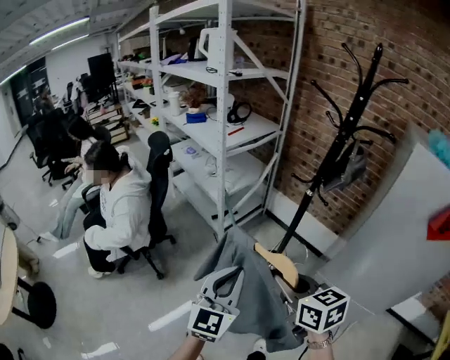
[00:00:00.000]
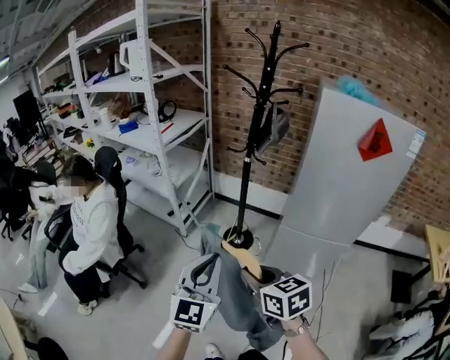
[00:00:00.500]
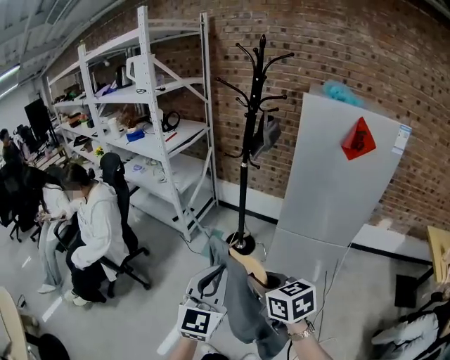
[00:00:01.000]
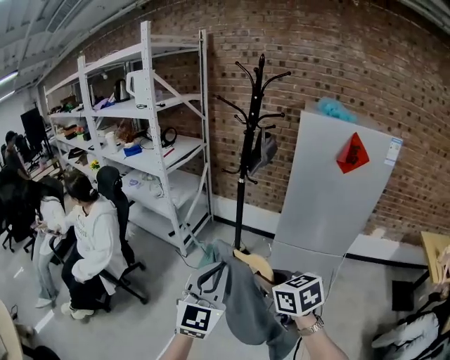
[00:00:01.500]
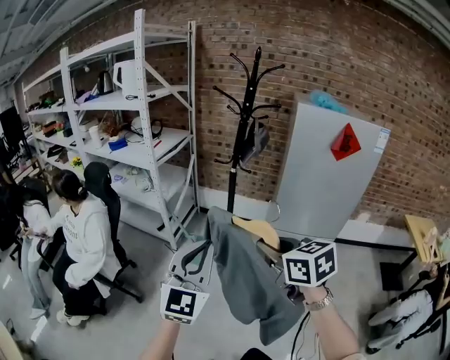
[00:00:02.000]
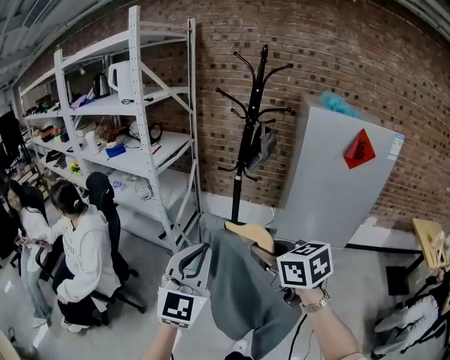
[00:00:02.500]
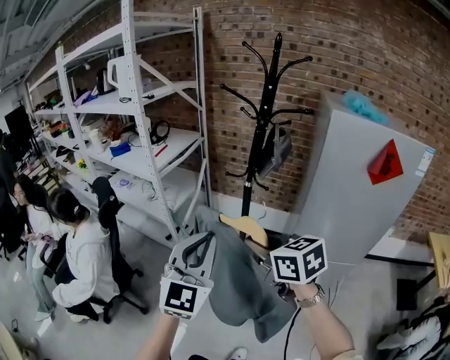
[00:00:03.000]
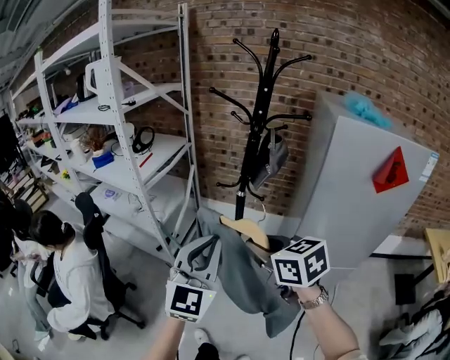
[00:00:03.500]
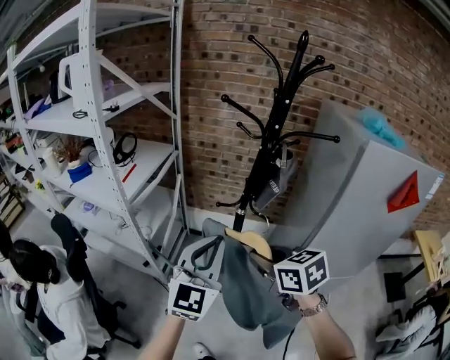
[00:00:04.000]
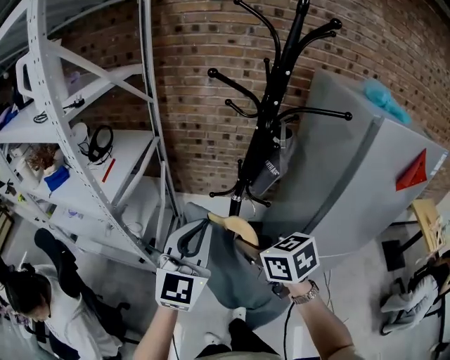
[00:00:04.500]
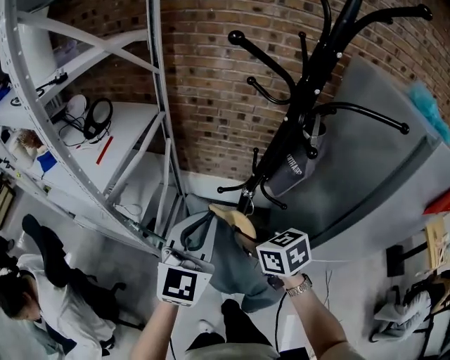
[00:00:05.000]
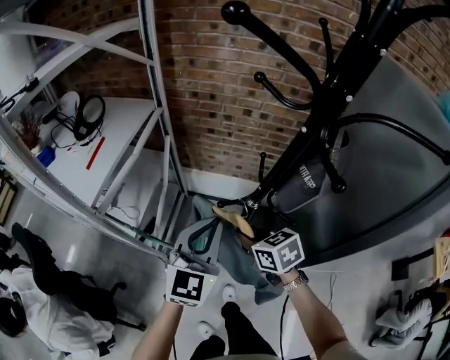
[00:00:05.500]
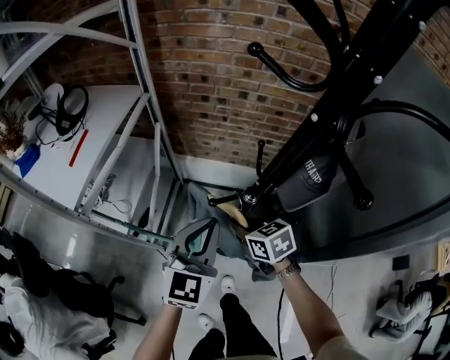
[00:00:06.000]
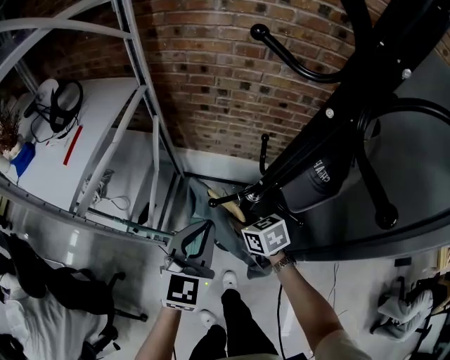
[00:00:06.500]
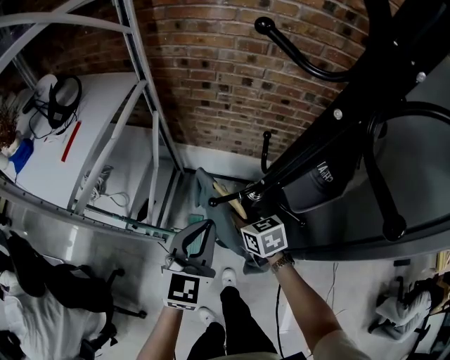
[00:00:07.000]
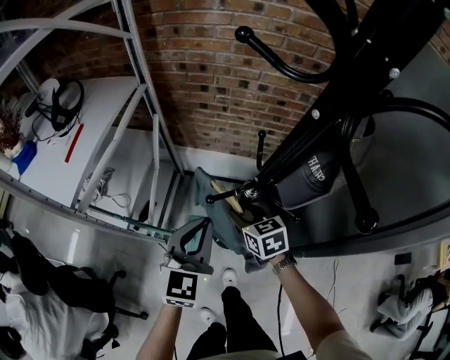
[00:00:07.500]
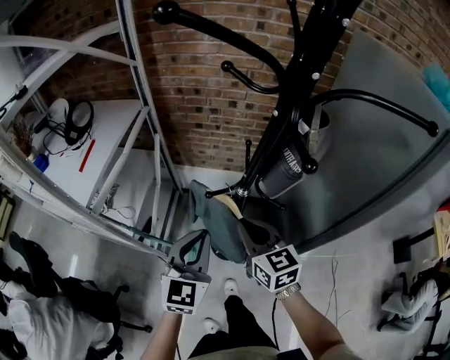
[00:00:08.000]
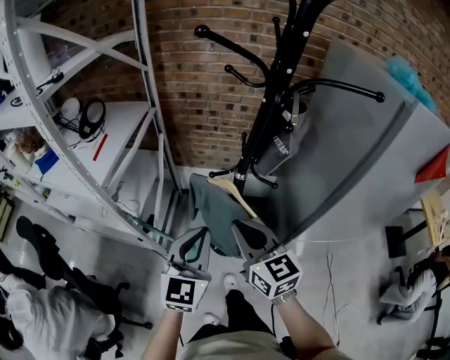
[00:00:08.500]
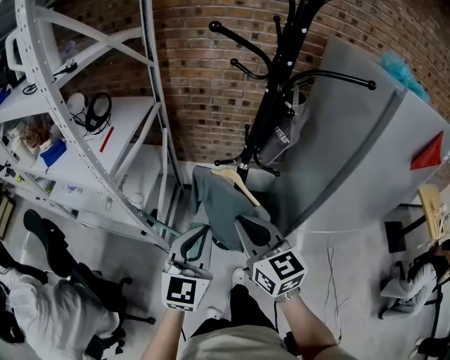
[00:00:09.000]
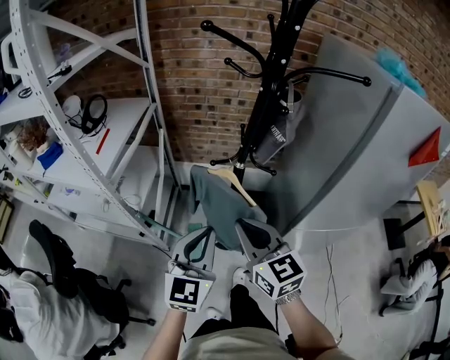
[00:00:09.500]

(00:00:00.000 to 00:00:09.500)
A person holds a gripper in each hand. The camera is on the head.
00:00:00.000 - 00:00:02.000: The left gripper heads backward, upward and to the left, covering approximately 20 cm, and turns by roughly 20 degrees, while the right gripper is displaced backward and upward by roughly 20 cm, and turns by roughly 20 degrees.
00:00:02.000 - 00:00:04.000: Both grippers are carried forward, approximately 40 cm.
00:00:04.000 - 00:00:05.500: The two grippers go some 30 cm forward and downward.
00:00:05.500 - 00:00:07.500: The left gripper heads downward, covering approximately 10 cm; the right gripper is displaced downward and forward by approximately 10 cm, and opens.
00:00:07.500 - 00:00:09.500: The left gripper heads backward and upward, covering roughly 25 cm. The right gripper goes approximately 35 cm backward and upward, rotates roughly 30 degrees, and closes its fingers.

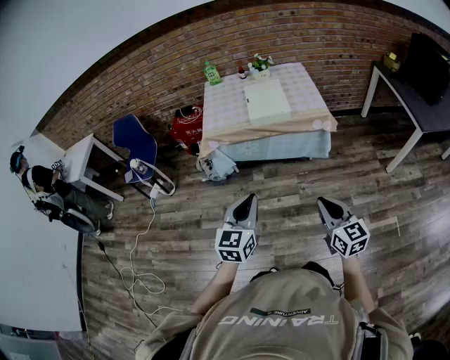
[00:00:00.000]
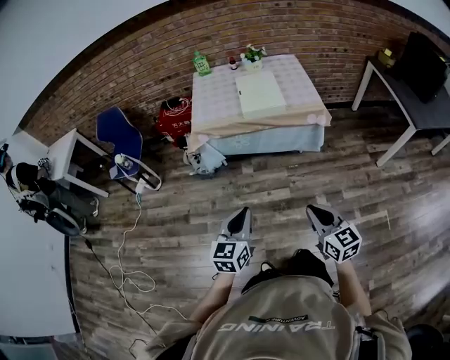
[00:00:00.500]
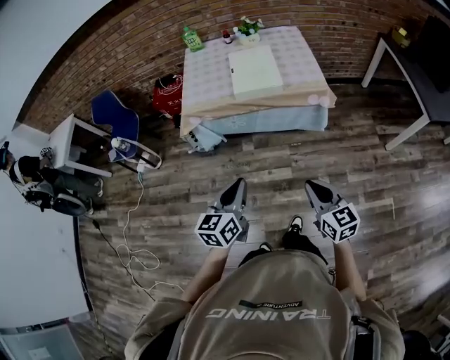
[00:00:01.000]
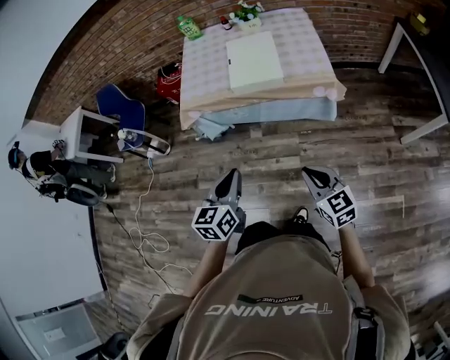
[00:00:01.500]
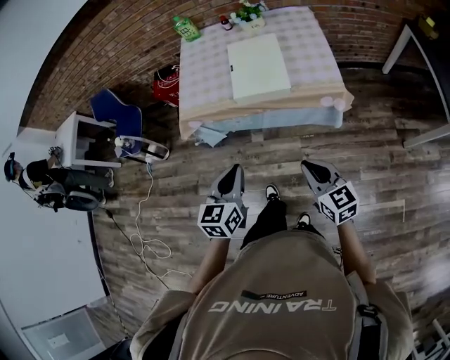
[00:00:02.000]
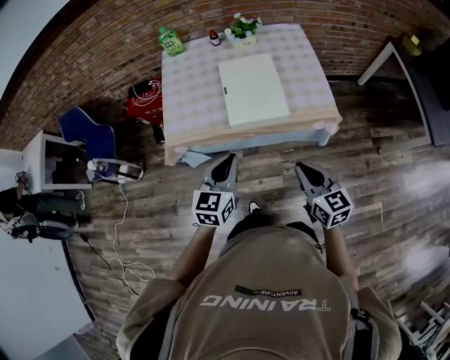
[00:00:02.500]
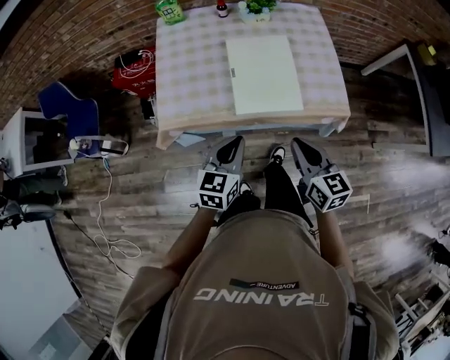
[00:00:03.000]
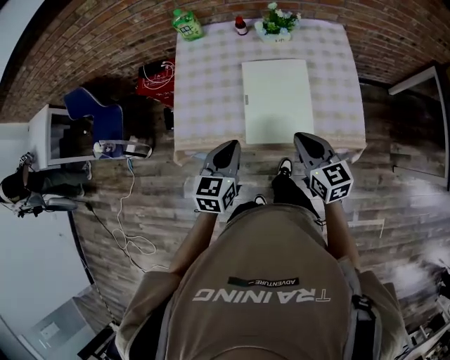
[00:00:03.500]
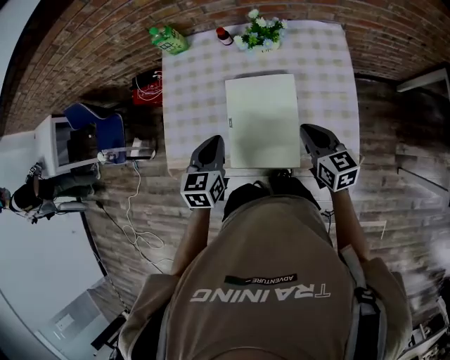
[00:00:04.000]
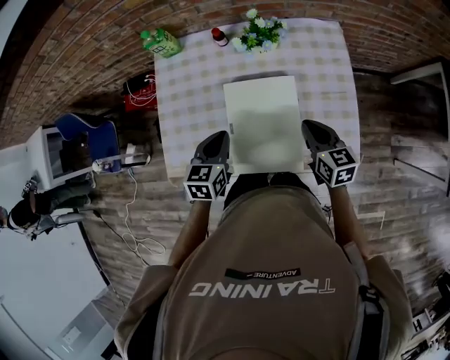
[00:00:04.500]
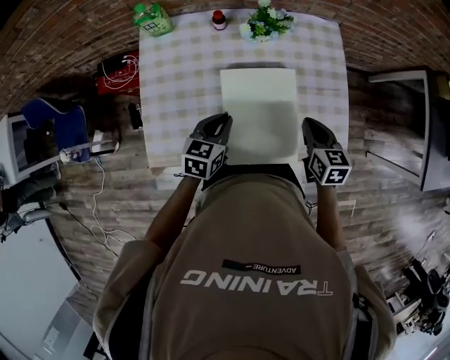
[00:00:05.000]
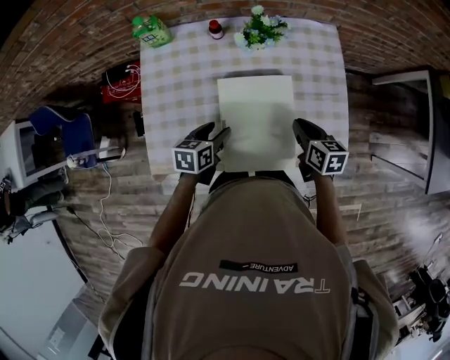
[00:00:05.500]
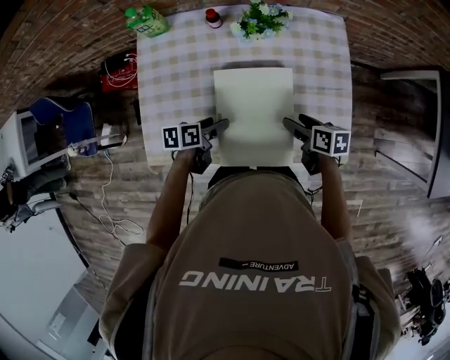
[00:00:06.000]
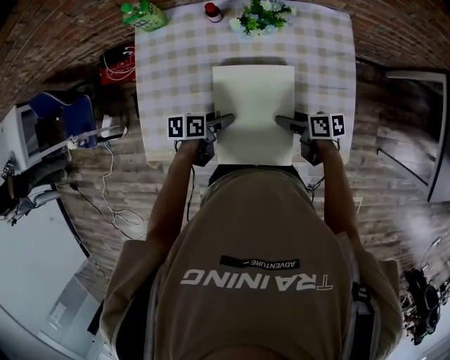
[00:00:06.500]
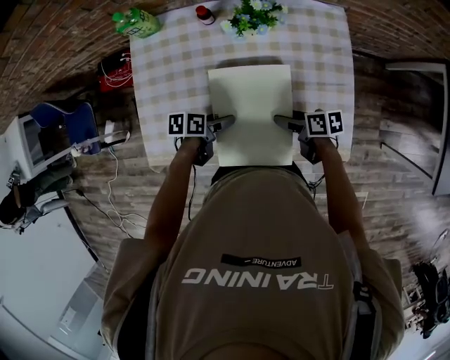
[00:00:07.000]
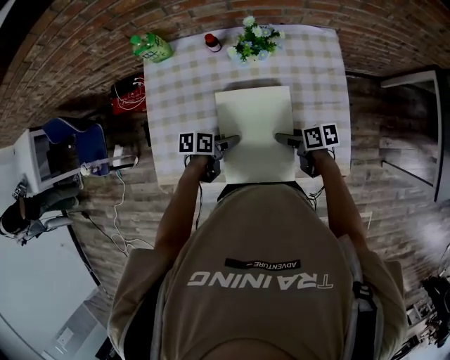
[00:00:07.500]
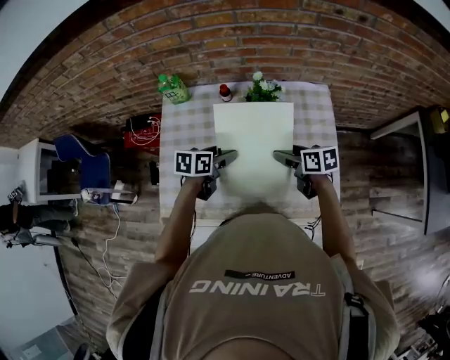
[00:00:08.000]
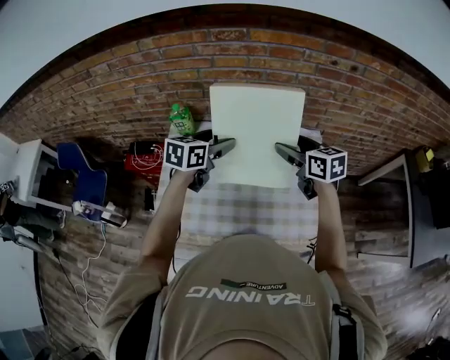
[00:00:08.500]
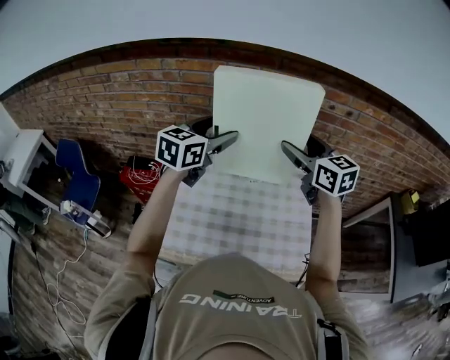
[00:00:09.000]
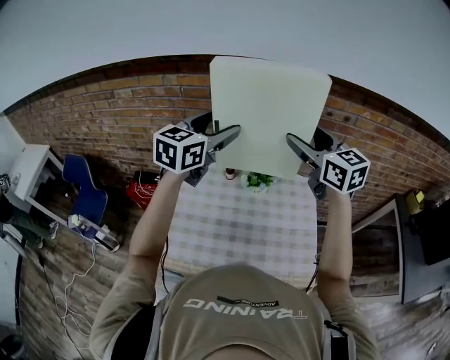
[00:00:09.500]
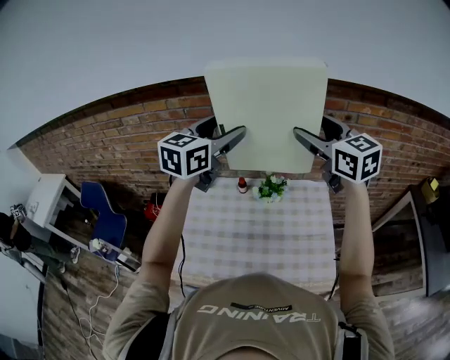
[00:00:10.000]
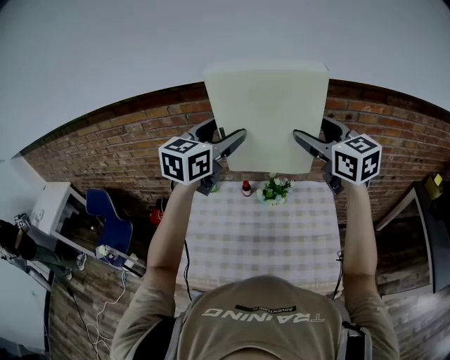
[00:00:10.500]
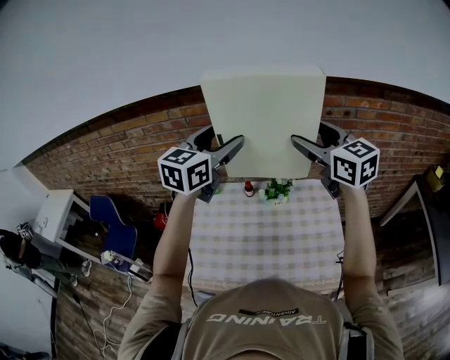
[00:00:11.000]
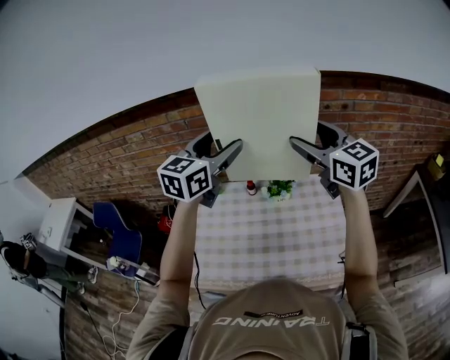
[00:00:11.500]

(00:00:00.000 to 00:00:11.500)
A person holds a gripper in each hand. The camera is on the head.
00:00:00.000 - 00:00:02.000: The two grippers go approximately 25 cm forward.
00:00:02.000 - 00:00:04.000: The pair of grippers is taken forward, roughly 40 cm.
00:00:04.000 - 00:00:06.000: The two grippers go about 15 cm downward. The right gripper turns by roughly 40 degrees, and opens its fingers; the left gripper swivels some 50 degrees, and opens.
00:00:06.000 - 00:00:07.500: The grippers move only a little.
00:00:07.500 - 00:00:09.500: The two grippers go about 50 cm upward. The right gripper tips its fingers upward by approximately 40 degrees. The left gripper tips its fingers upward by approximately 40 degrees.
00:00:09.500 - 00:00:11.500: There are only small adjustments of the grippers.

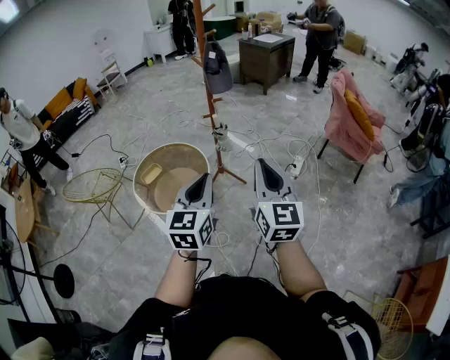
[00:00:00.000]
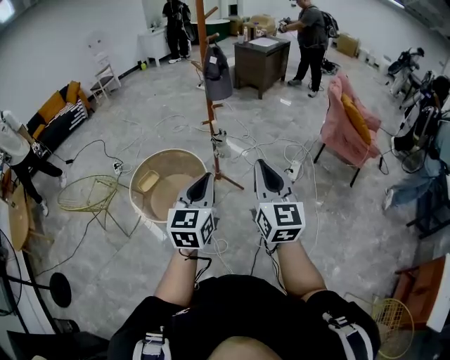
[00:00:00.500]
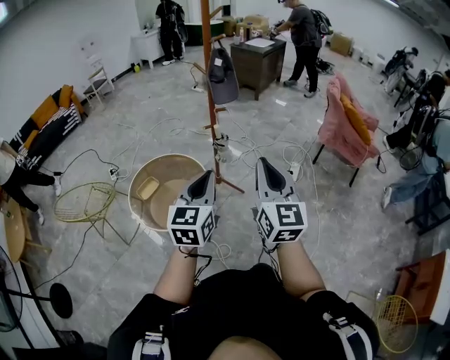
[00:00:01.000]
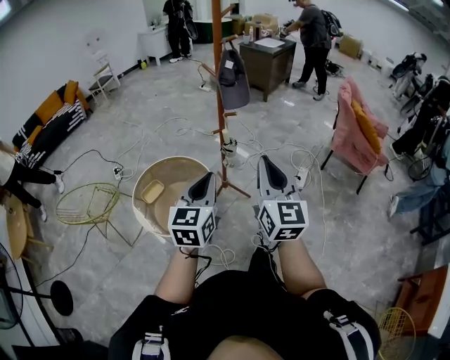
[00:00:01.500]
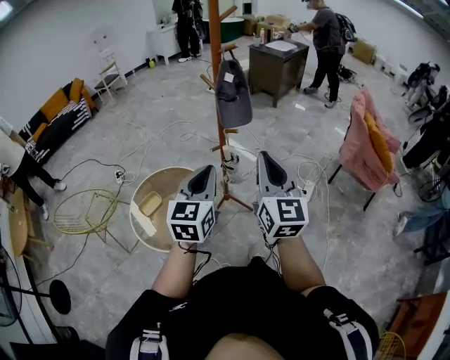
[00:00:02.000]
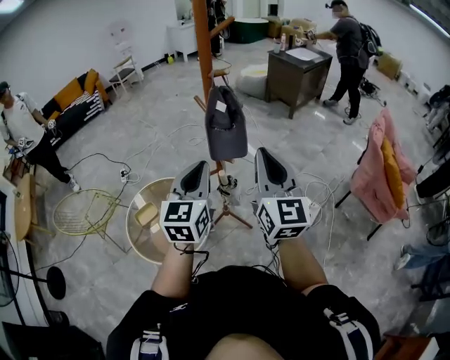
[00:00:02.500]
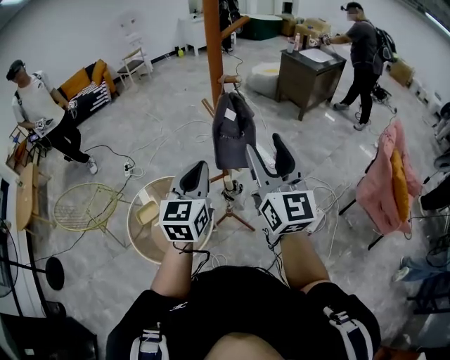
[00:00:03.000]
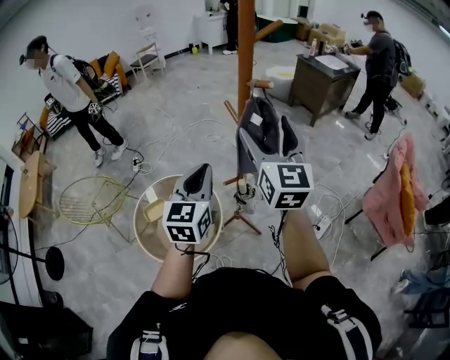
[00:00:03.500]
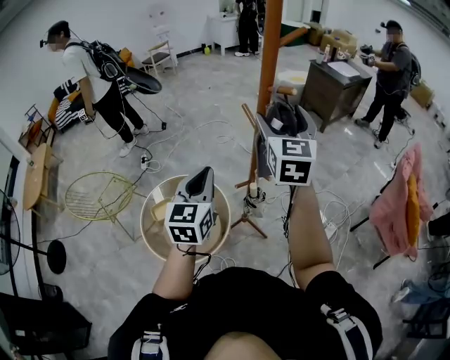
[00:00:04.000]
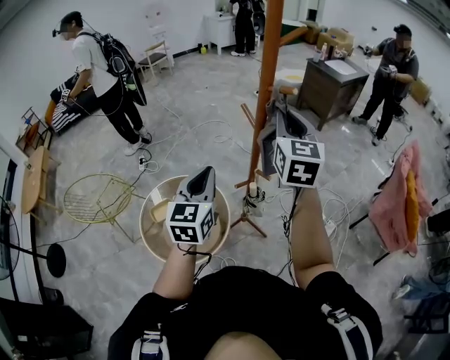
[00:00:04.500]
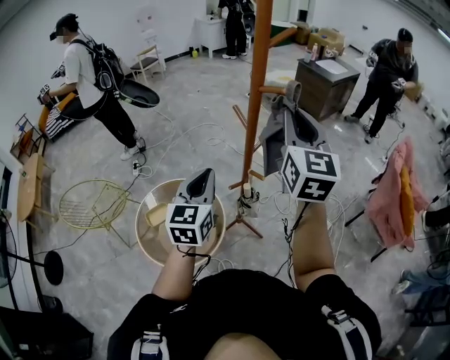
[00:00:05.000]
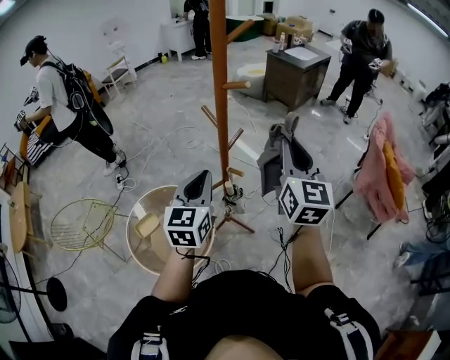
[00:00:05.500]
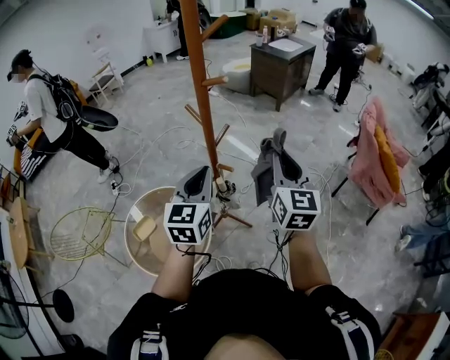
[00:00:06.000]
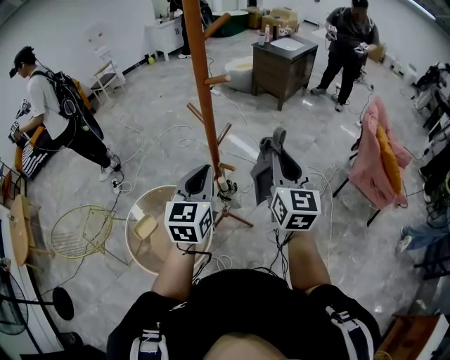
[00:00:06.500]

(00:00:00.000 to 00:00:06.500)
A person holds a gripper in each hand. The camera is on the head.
00:00:00.000 - 00:00:02.000: The two grippers go roughly 35 cm forward.
00:00:02.000 - 00:00:04.500: The left gripper moves forward, some 25 cm, while the right gripper travels forward by some 40 cm, and opens, then closes again.
00:00:04.500 - 00:00:06.500: The left gripper is displaced to the right by roughly 10 cm, while the right gripper heads to the right, backward and downward, covering about 20 cm.
